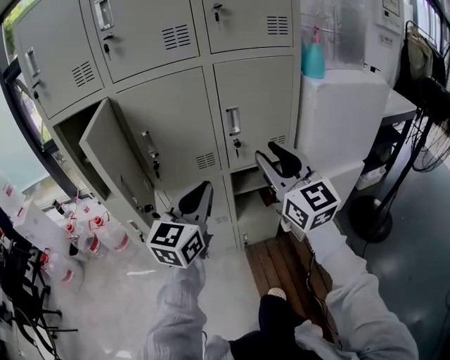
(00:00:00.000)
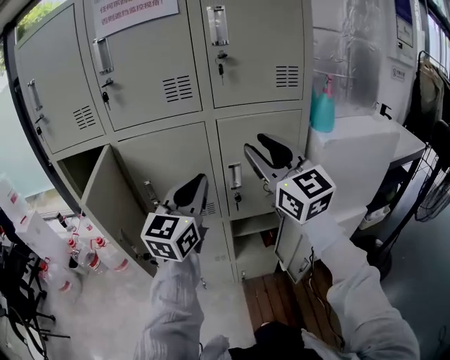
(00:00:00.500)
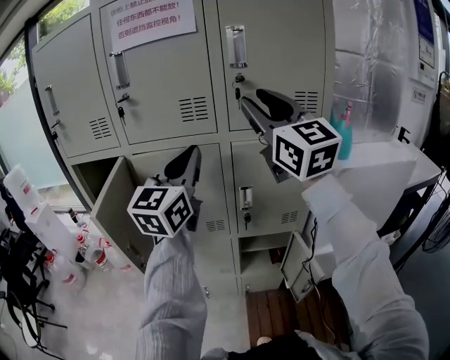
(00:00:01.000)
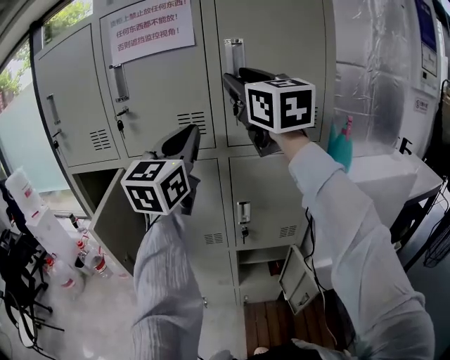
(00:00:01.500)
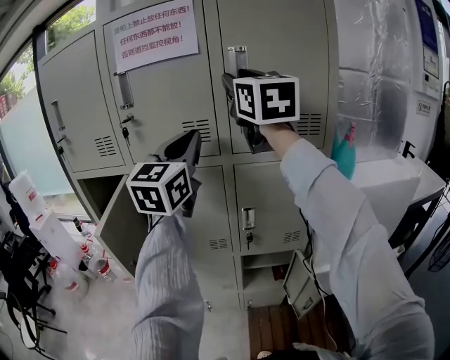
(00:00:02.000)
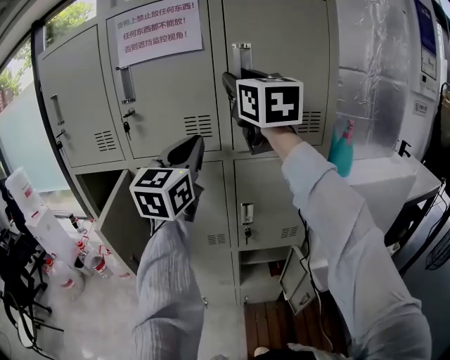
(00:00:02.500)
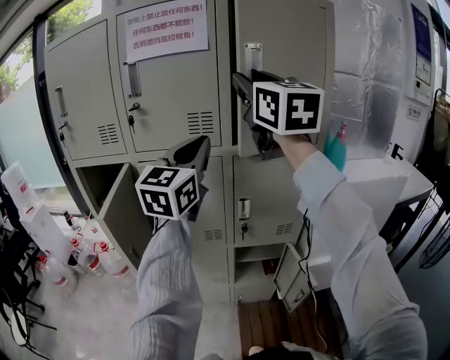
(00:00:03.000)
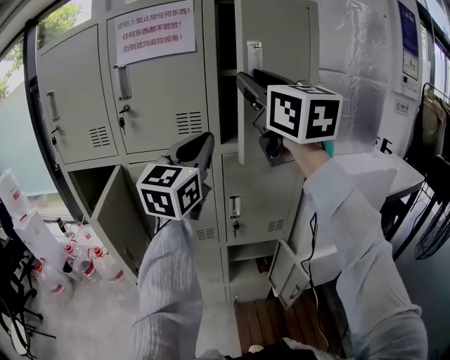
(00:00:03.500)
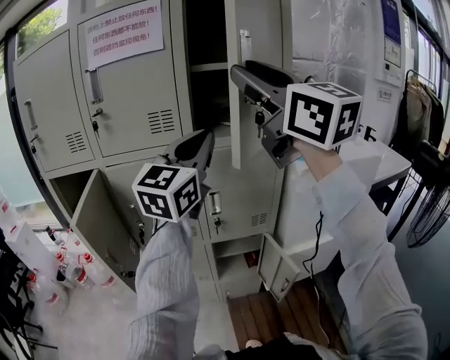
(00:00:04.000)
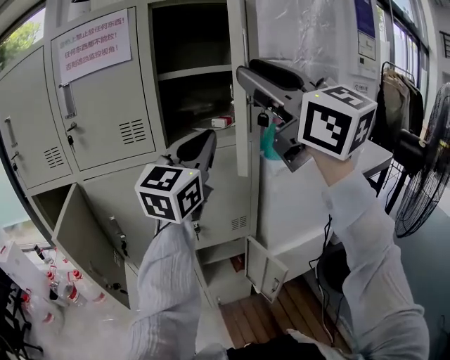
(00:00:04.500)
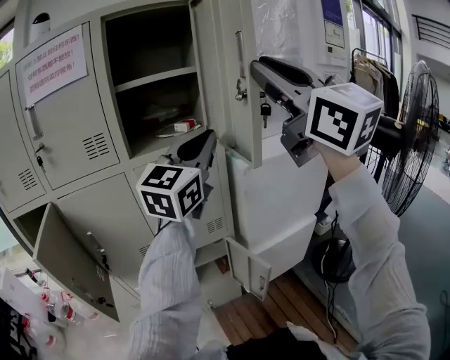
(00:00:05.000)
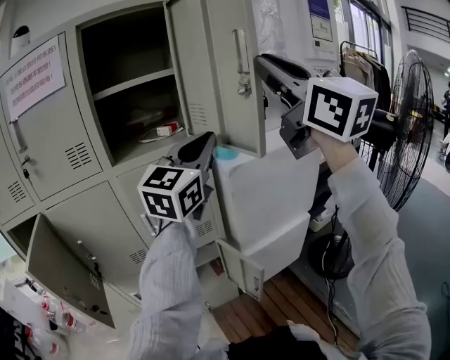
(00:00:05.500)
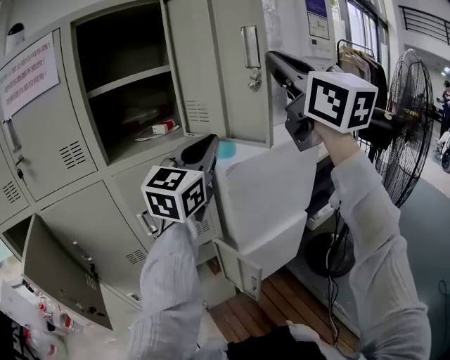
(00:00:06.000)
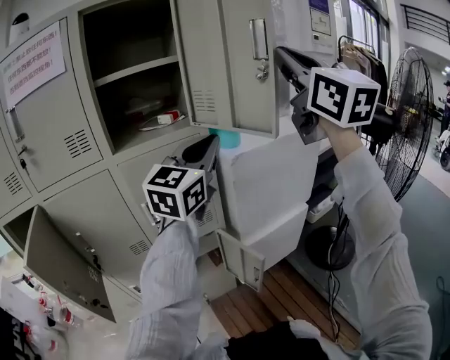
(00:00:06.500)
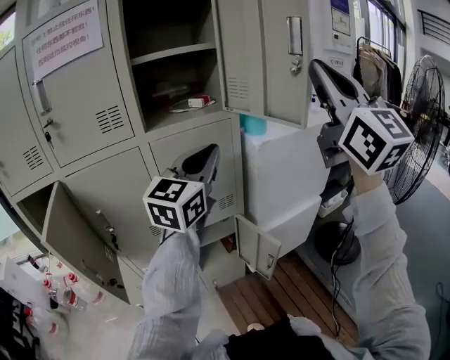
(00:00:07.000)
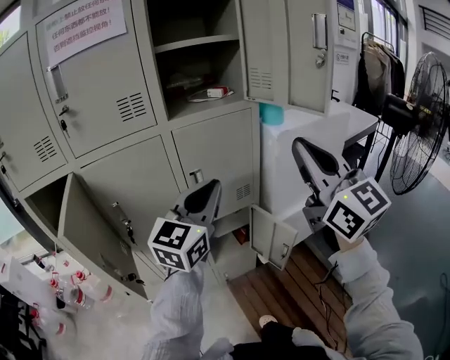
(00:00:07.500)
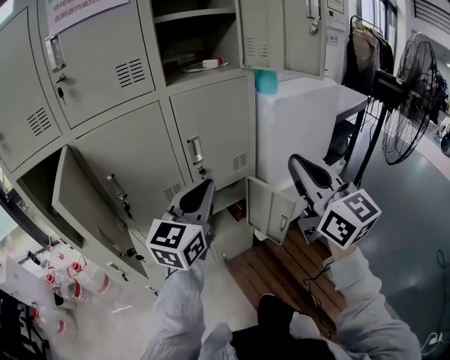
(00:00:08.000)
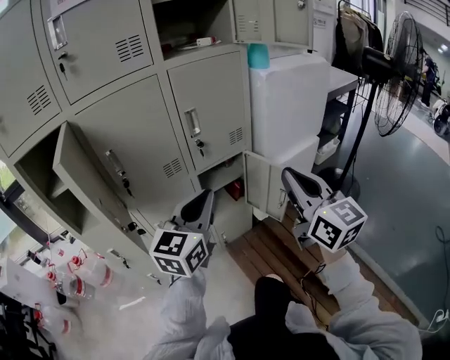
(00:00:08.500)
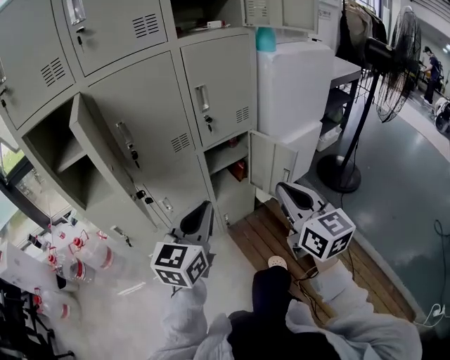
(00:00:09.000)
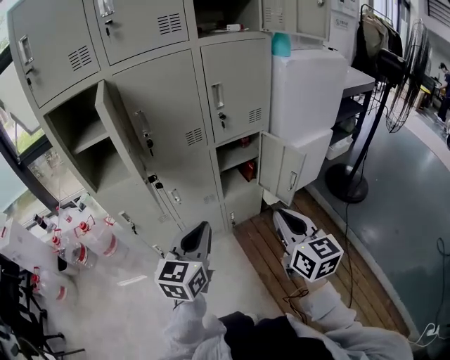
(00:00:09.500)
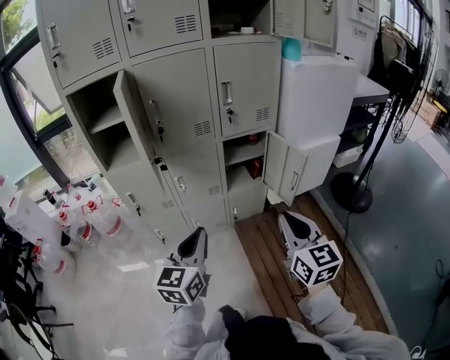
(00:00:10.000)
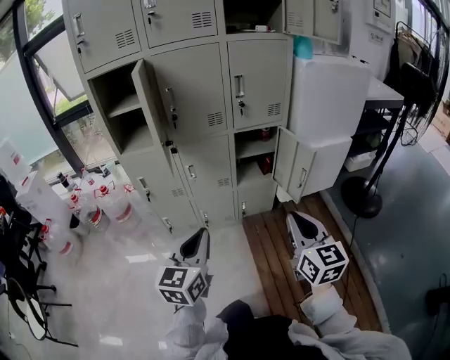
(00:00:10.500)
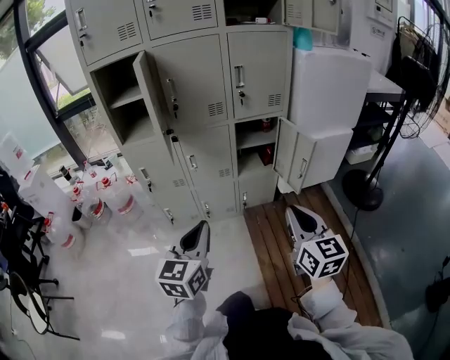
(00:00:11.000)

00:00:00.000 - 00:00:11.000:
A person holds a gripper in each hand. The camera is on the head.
00:00:00.000 - 00:00:02.000: The grippers both shift upward and forward by roughly 40 cm. The left gripper swivels approximately 20 degrees.
00:00:02.000 - 00:00:03.500: The left gripper heads backward, covering roughly 5 cm; the right gripper is displaced backward by approximately 10 cm.
00:00:03.500 - 00:00:05.500: The two grippers go about 30 cm to the right. The left gripper rotates about 20 degrees.
00:00:05.500 - 00:00:07.500: The left gripper moves to the left, downward and backward, roughly 25 cm; the right gripper moves downward, to the left and backward, some 25 cm.
00:00:07.500 - 00:00:09.000: The right gripper moves downward and backward, approximately 35 cm, and rotates some 30 degrees, while the left gripper moves backward, downward and to the left, about 30 cm.
00:00:09.000 - 00:00:11.000: The left gripper heads backward, covering about 20 cm, and changes its angle by roughly 20 degrees. Meanwhile the right gripper moves backward and downward, about 15 cm.

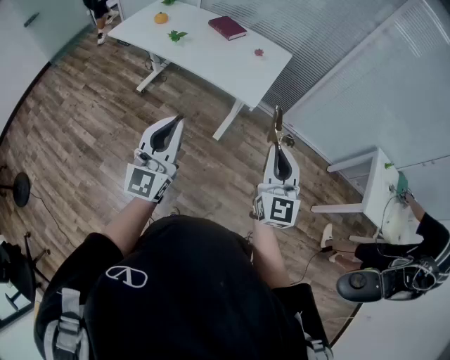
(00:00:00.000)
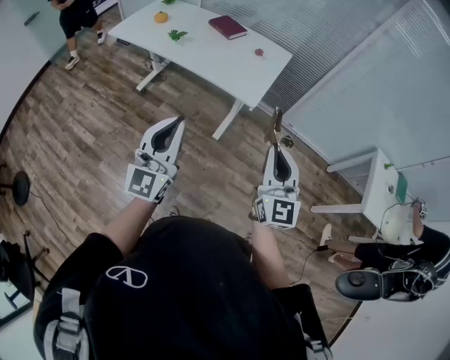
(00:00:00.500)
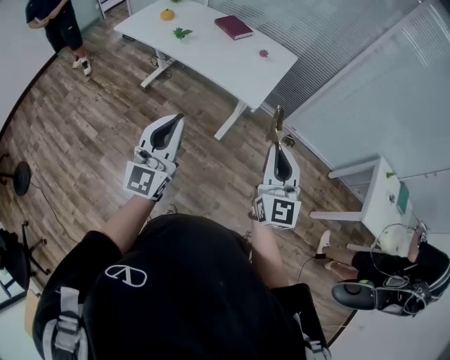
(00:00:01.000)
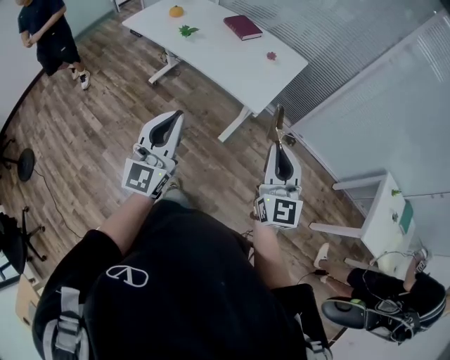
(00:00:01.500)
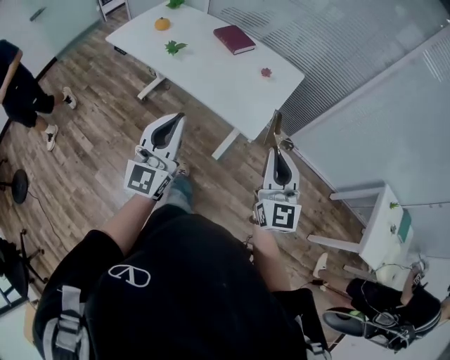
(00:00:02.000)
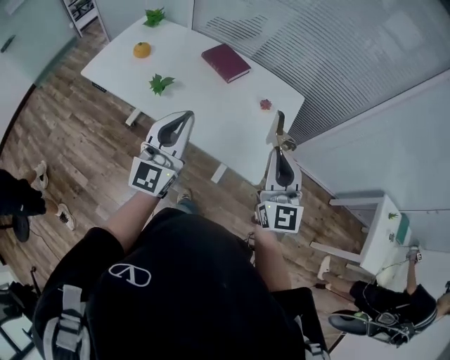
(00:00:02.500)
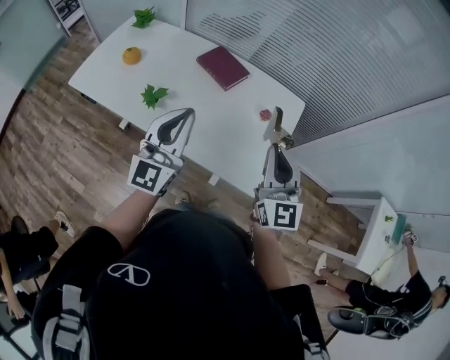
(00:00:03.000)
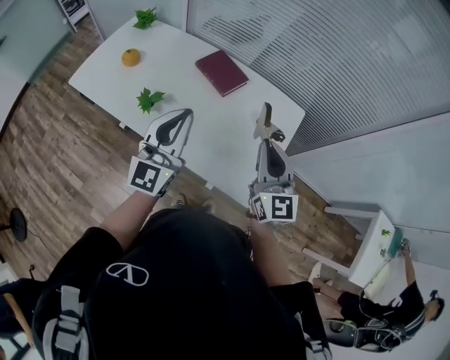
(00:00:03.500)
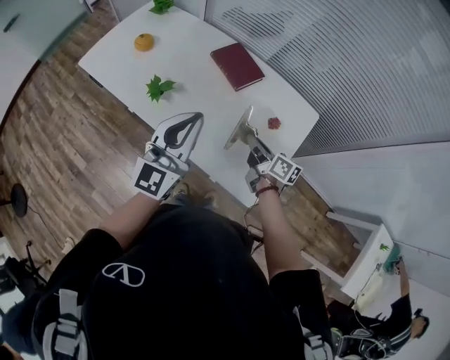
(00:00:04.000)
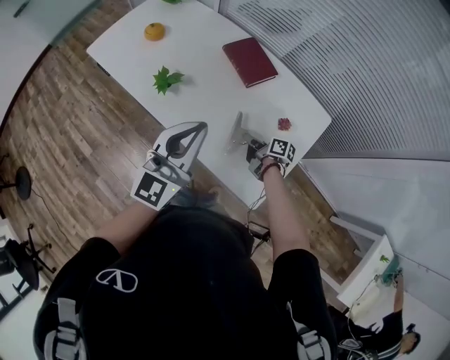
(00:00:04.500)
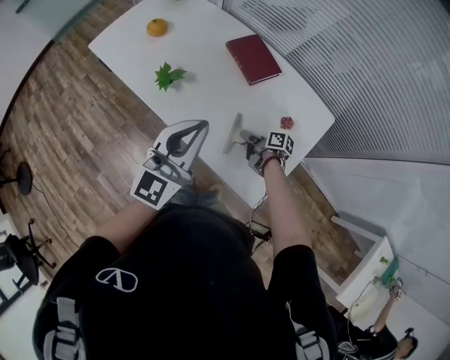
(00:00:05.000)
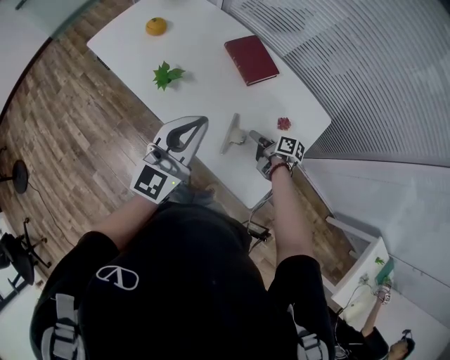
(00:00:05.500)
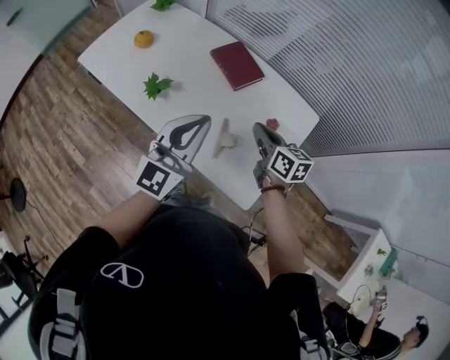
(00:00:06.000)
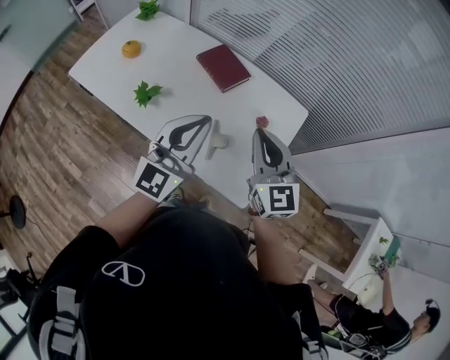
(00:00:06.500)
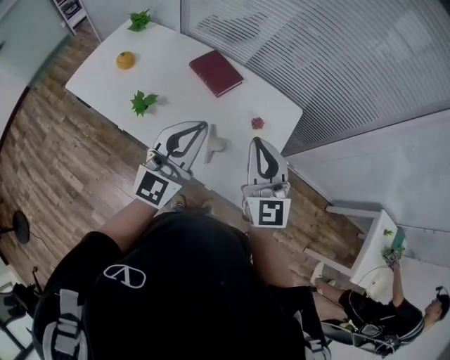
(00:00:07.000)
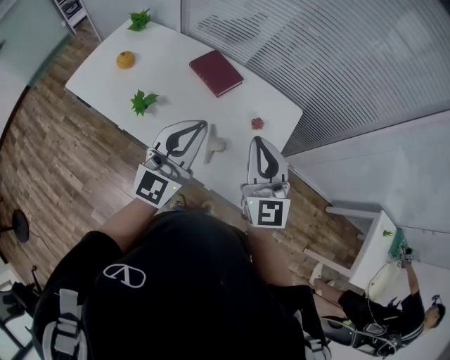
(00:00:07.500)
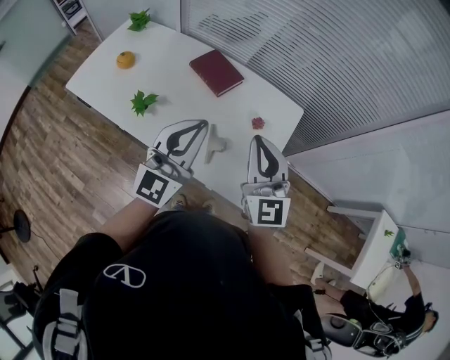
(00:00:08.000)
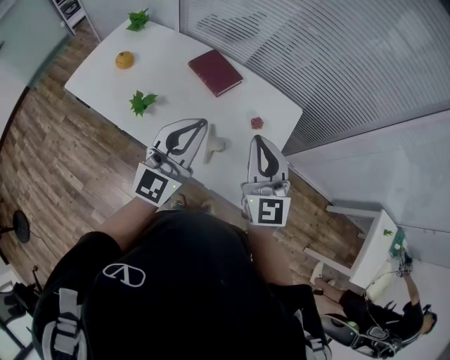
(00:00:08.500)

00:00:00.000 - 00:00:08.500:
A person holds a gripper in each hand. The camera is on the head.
00:00:00.000 - 00:00:02.000: The grippers both shift forward by roughly 20 cm.
00:00:02.000 - 00:00:04.000: The right gripper moves forward and downward, about 50 cm, and twists about 60 degrees clockwise, seen from behind, while the left gripper shifts approximately 40 cm forward.
00:00:04.000 - 00:00:06.500: The left gripper ends up approximately 5 cm from where it was. Meanwhile the right gripper is displaced upward by roughly 20 cm, rolls counterclockwise, seen from behind, by some 60 degrees, and opens, then closes again.
00:00:06.500 - 00:00:08.500: The grippers stay close to where they were, moving slightly.

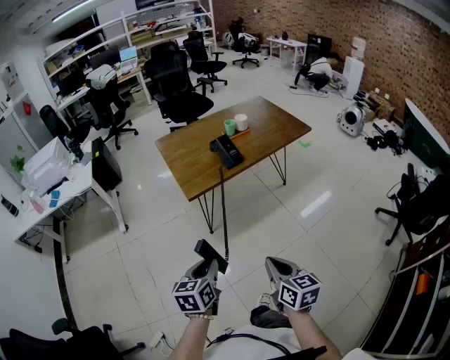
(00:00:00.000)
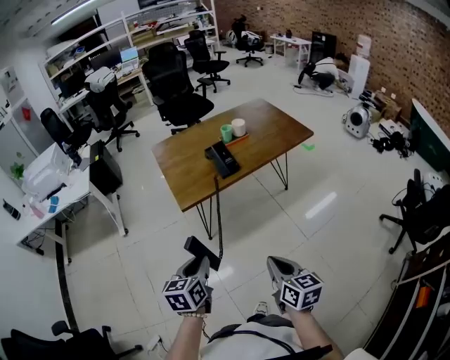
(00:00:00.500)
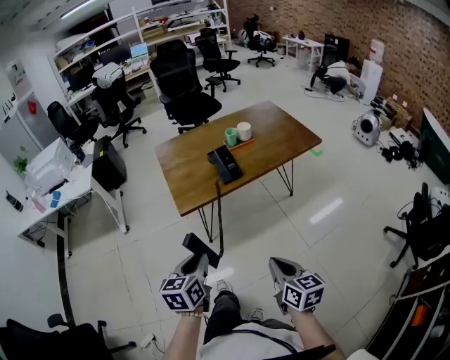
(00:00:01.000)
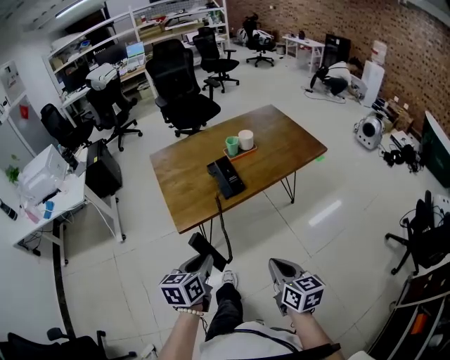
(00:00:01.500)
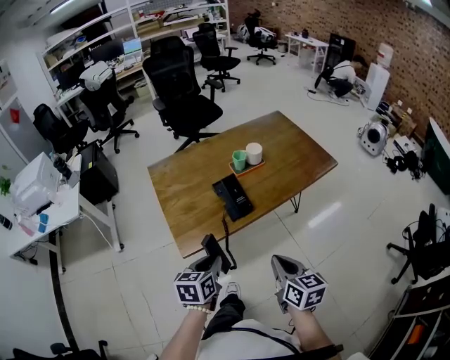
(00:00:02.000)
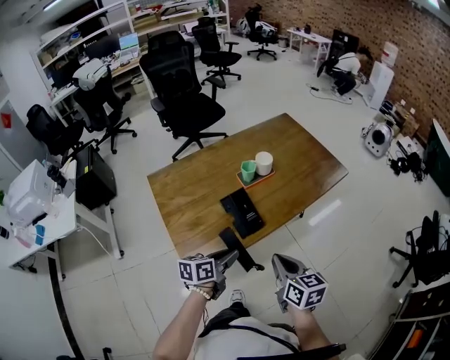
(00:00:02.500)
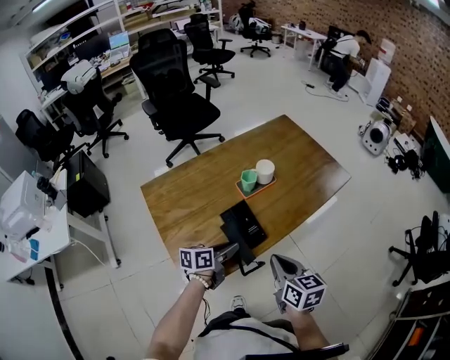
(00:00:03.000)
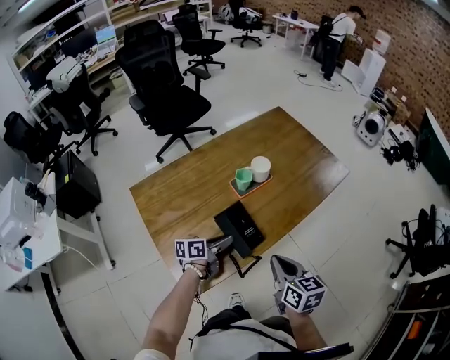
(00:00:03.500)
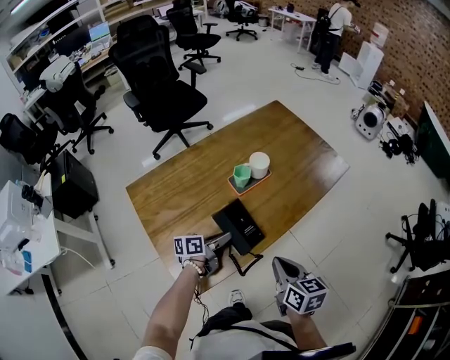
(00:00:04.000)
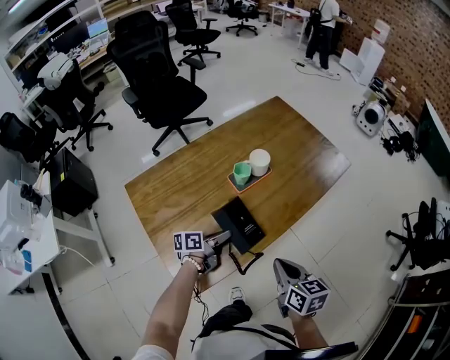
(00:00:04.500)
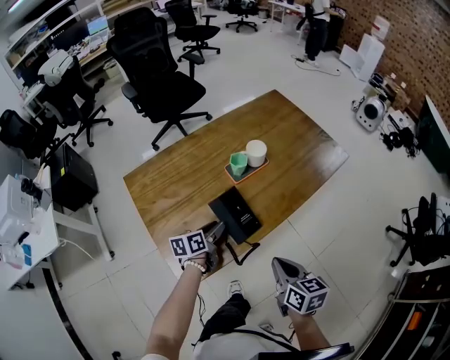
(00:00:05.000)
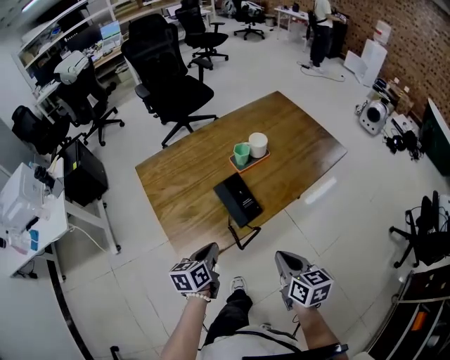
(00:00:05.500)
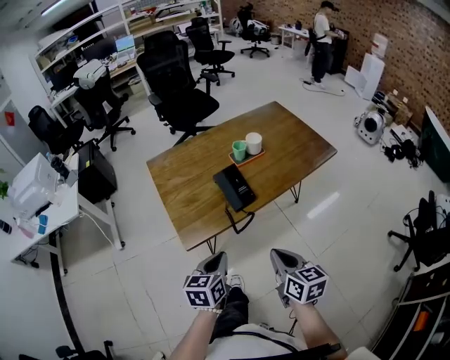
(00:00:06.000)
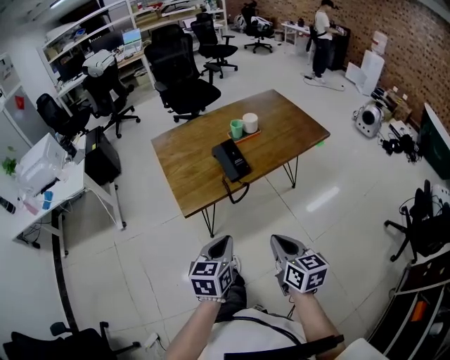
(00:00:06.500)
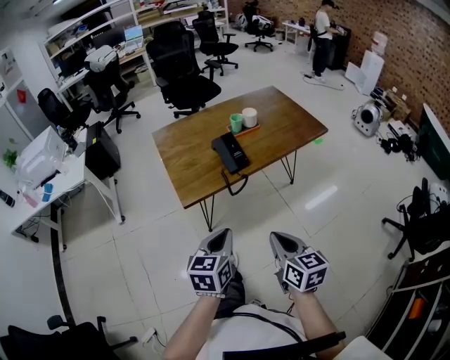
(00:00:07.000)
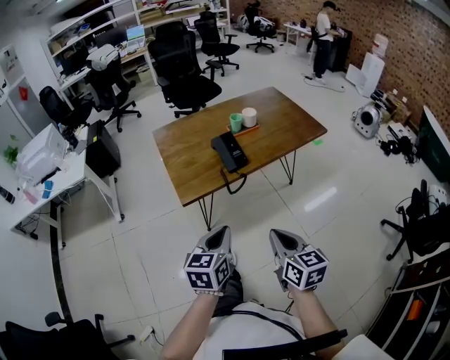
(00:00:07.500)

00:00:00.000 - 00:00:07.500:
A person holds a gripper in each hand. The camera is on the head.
00:00:00.000 - 00:00:02.000: Both grippers move forward, some 30 cm.
00:00:02.000 - 00:00:04.000: The left gripper travels forward and downward by some 30 cm, and turns by some 50 degrees. The right gripper is displaced forward and to the left by some 15 cm.
00:00:04.000 - 00:00:05.500: The left gripper shifts approximately 15 cm backward, and changes its angle by approximately 30 degrees; the right gripper travels backward by roughly 10 cm.
00:00:05.500 - 00:00:07.500: The left gripper heads backward and upward, covering about 30 cm, and turns by about 20 degrees; the right gripper moves backward, about 20 cm.
